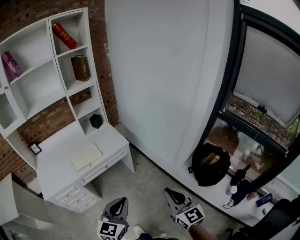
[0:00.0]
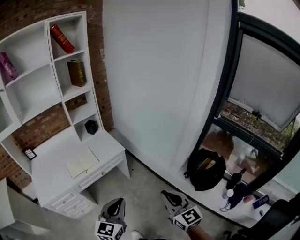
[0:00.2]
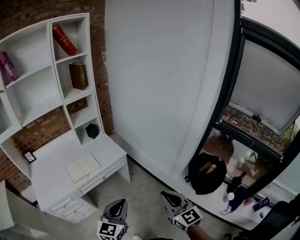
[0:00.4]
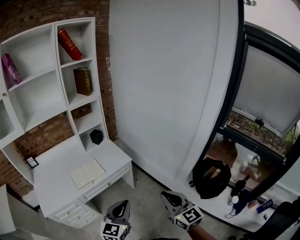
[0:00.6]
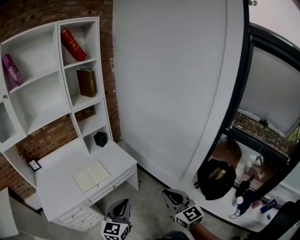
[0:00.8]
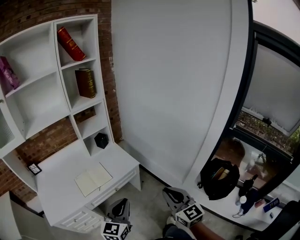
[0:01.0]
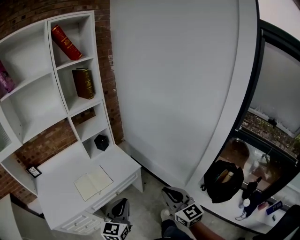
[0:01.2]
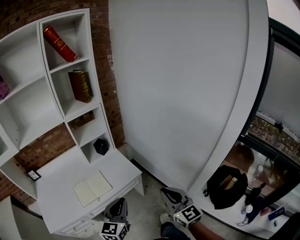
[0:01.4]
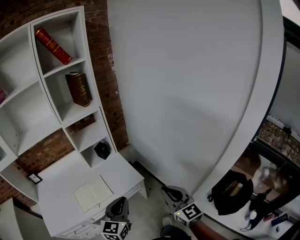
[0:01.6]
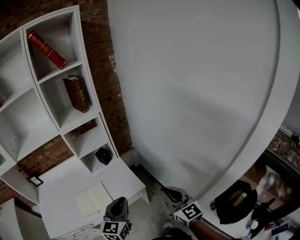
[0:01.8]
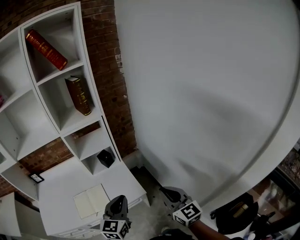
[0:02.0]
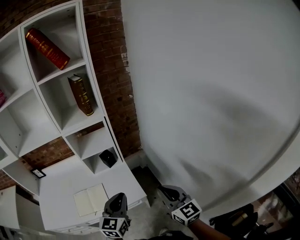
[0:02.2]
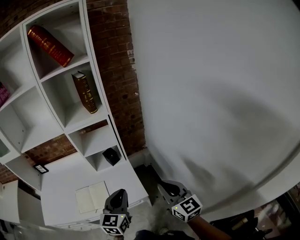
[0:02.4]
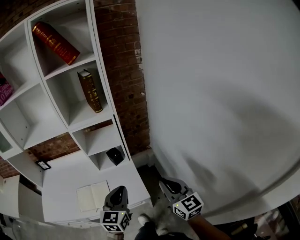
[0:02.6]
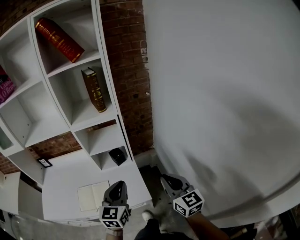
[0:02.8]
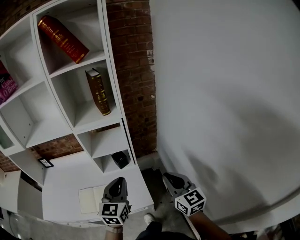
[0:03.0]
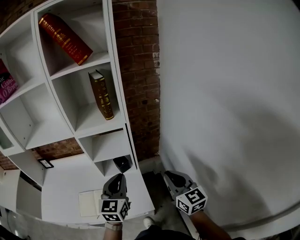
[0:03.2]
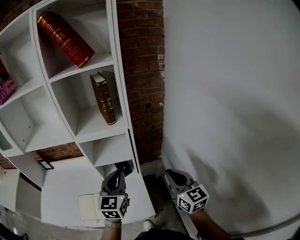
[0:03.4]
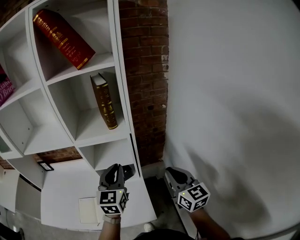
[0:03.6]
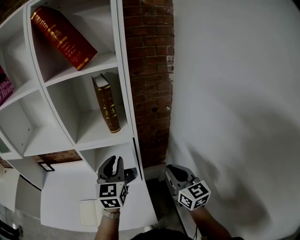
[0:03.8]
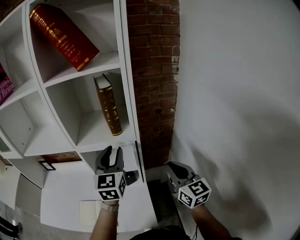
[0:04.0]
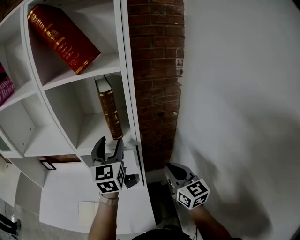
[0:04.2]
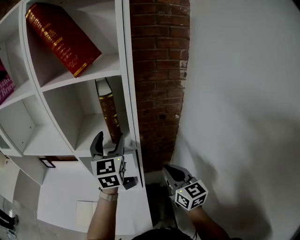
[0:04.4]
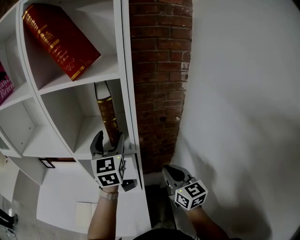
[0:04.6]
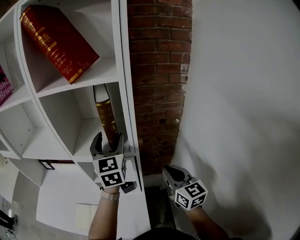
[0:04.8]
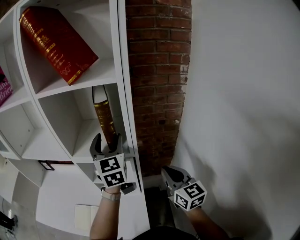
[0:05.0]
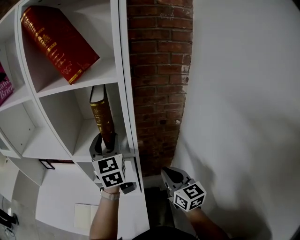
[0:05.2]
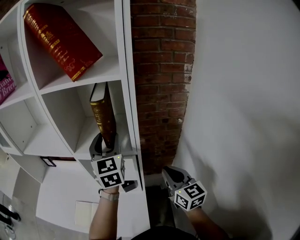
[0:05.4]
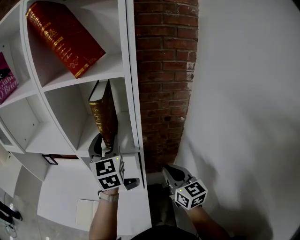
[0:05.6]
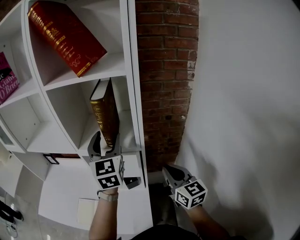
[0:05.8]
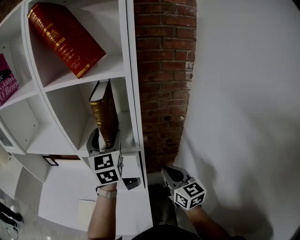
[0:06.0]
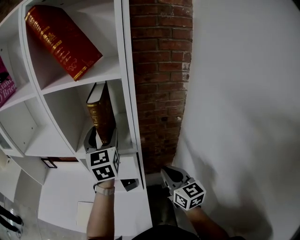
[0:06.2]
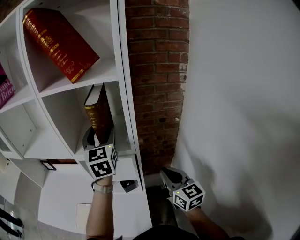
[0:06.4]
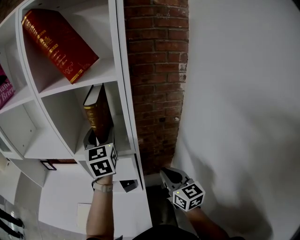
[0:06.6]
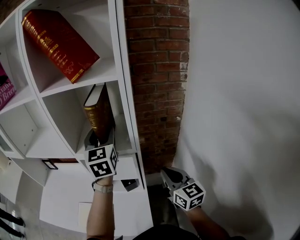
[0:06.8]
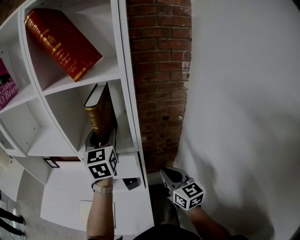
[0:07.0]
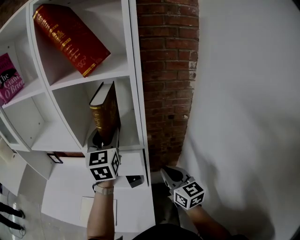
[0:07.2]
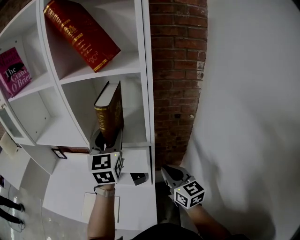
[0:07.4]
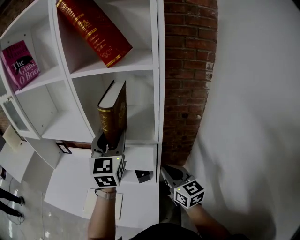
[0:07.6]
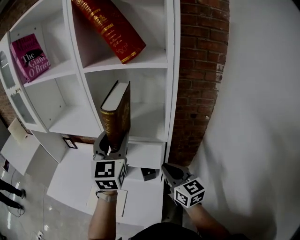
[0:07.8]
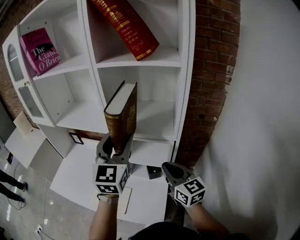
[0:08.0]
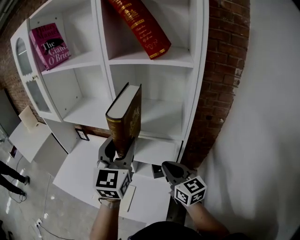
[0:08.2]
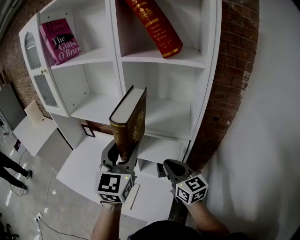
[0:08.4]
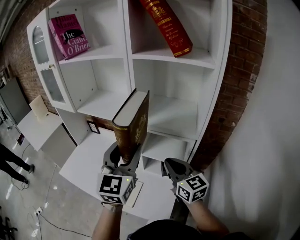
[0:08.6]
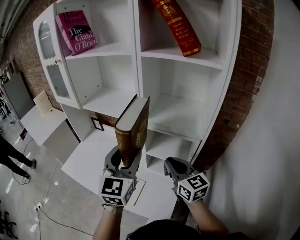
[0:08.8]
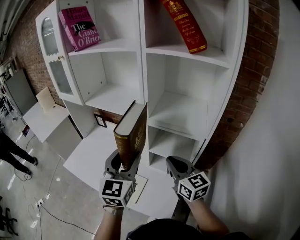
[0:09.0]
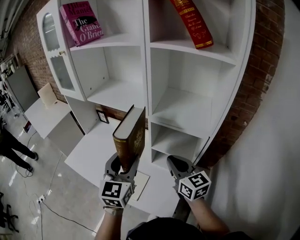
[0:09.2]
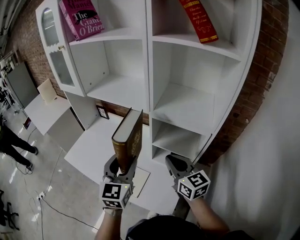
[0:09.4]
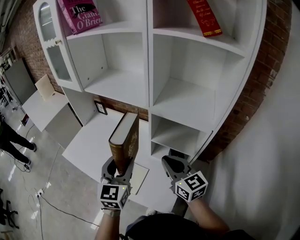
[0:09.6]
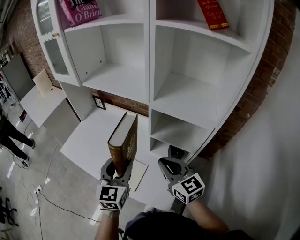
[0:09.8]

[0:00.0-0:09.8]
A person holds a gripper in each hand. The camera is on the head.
0:00.0 to 0:01.4: The two grippers go approximately 30 cm forward and to the left.
0:01.4 to 0:02.8: Both grippers move forward, some 30 cm. The right gripper changes its angle by approximately 20 degrees, while the left gripper rotates some 30 degrees.
0:02.8 to 0:04.2: The left gripper travels forward and upward by approximately 35 cm, turns by roughly 20 degrees, and opens up; the right gripper heads forward, covering about 25 cm.
0:05.6 to 0:07.0: The grippers move only a little.
0:07.0 to 0:08.4: The left gripper is displaced to the left and backward by some 20 cm. The right gripper goes about 20 cm to the left, and swivels approximately 20 degrees.
0:08.4 to 0:09.8: The left gripper is displaced downward and to the left by some 20 cm. The right gripper travels to the left and downward by some 10 cm.

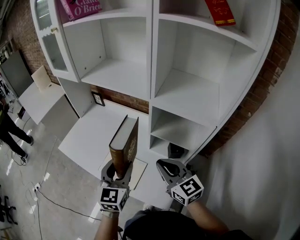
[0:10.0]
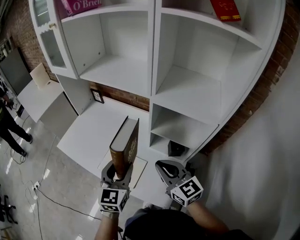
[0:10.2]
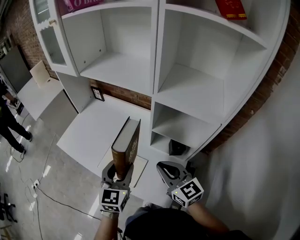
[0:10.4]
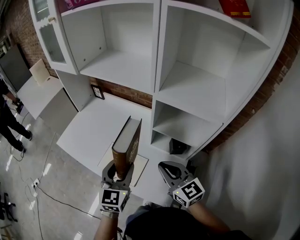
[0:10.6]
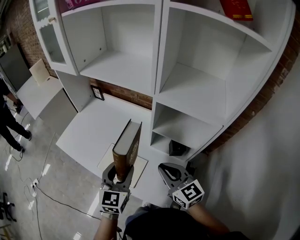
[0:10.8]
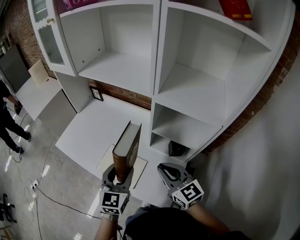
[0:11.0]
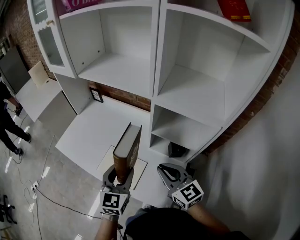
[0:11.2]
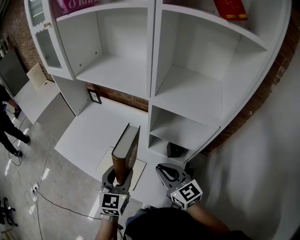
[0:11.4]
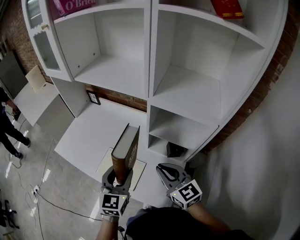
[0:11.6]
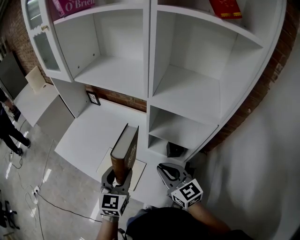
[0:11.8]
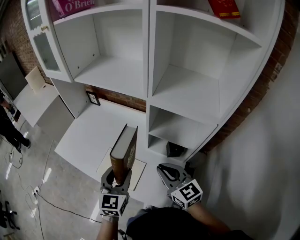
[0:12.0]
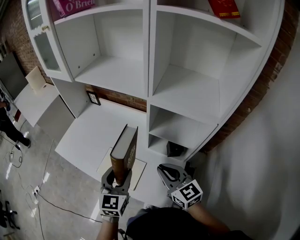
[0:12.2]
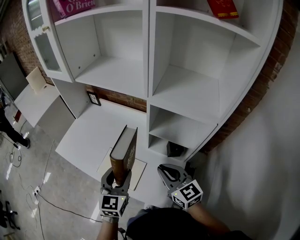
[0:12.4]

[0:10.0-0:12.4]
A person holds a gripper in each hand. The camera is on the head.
0:10.0 to 0:11.2: There are only small adjustments of the grippers.
0:11.2 to 0:12.4: Neither gripper changes place.

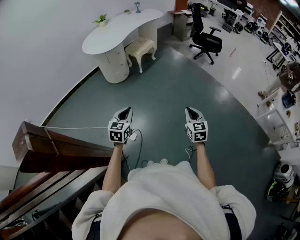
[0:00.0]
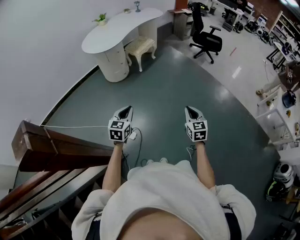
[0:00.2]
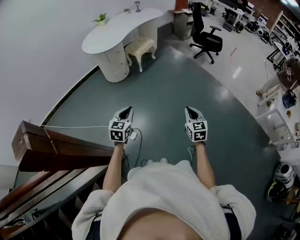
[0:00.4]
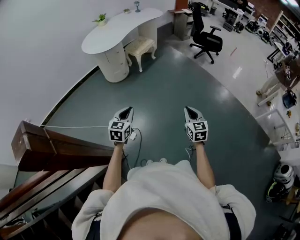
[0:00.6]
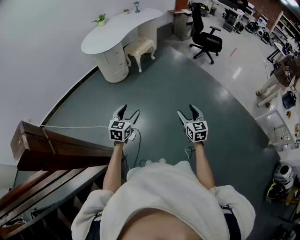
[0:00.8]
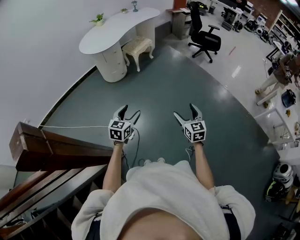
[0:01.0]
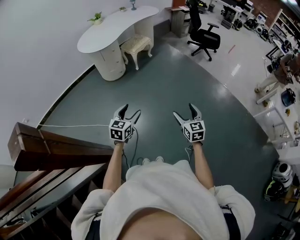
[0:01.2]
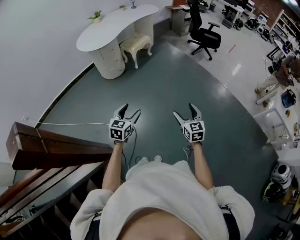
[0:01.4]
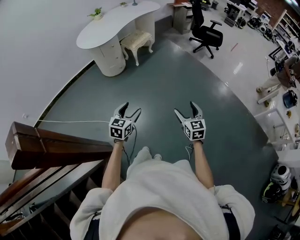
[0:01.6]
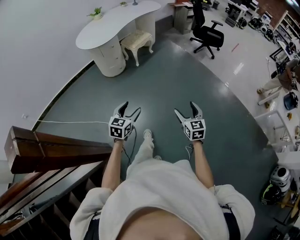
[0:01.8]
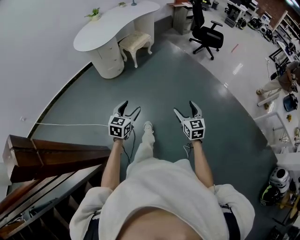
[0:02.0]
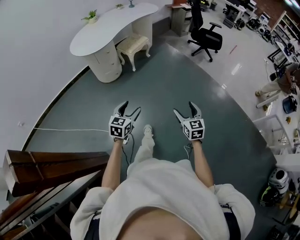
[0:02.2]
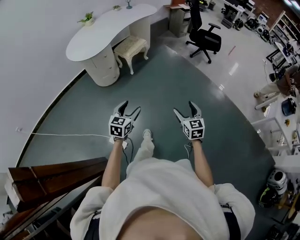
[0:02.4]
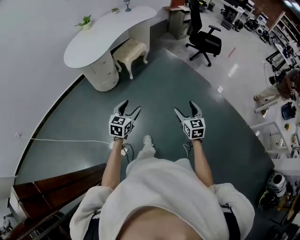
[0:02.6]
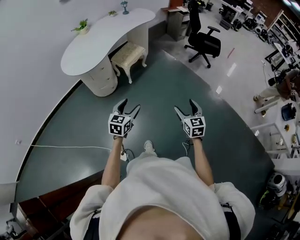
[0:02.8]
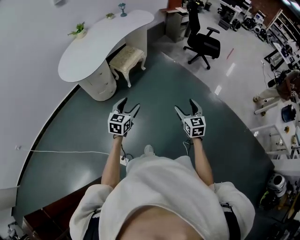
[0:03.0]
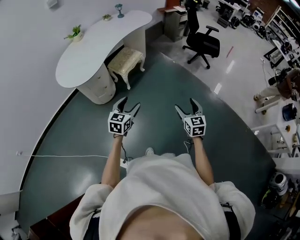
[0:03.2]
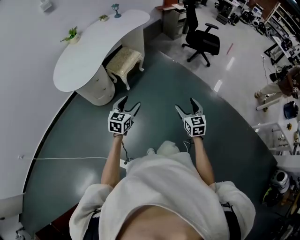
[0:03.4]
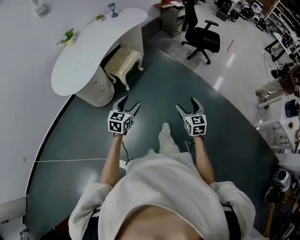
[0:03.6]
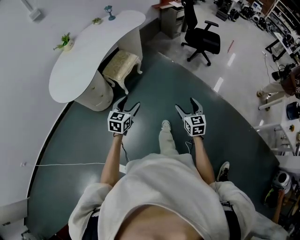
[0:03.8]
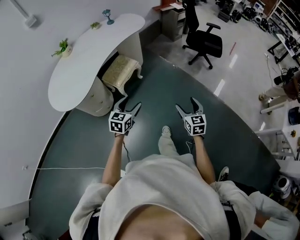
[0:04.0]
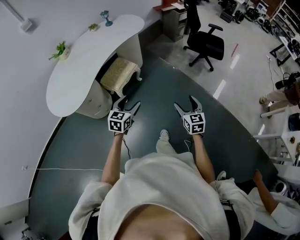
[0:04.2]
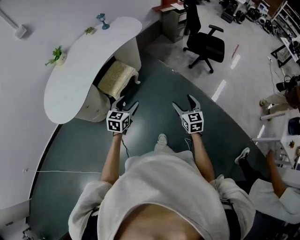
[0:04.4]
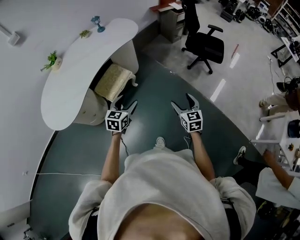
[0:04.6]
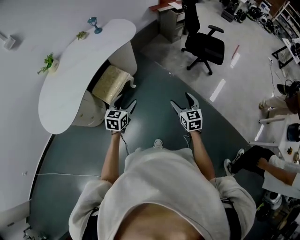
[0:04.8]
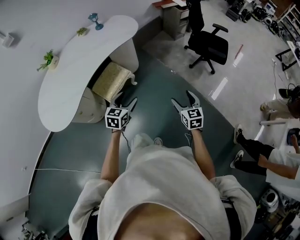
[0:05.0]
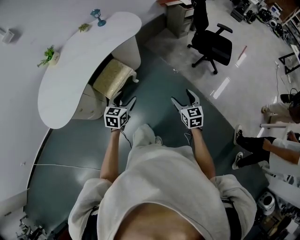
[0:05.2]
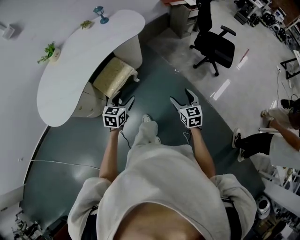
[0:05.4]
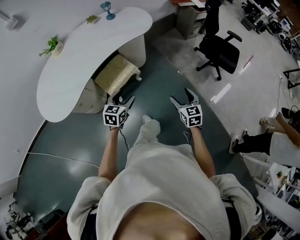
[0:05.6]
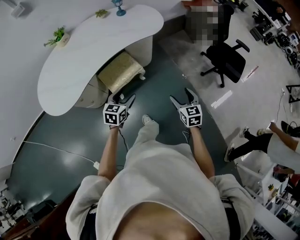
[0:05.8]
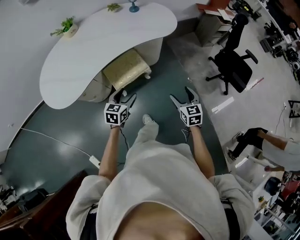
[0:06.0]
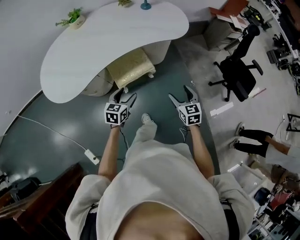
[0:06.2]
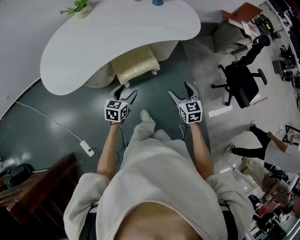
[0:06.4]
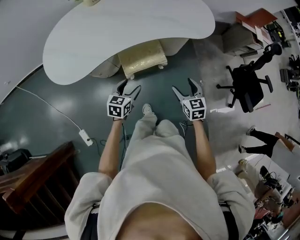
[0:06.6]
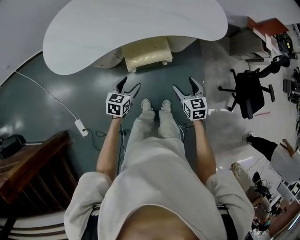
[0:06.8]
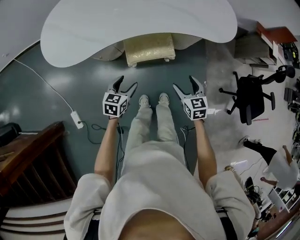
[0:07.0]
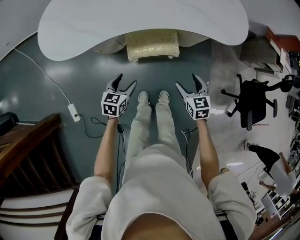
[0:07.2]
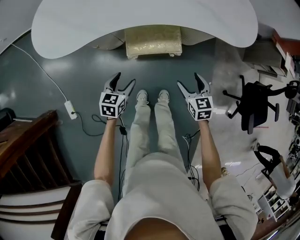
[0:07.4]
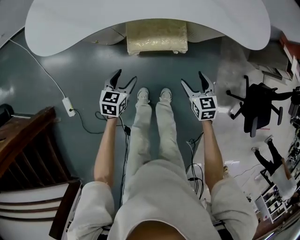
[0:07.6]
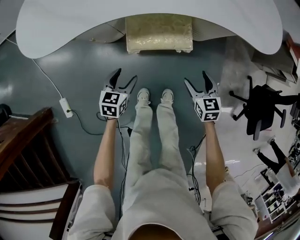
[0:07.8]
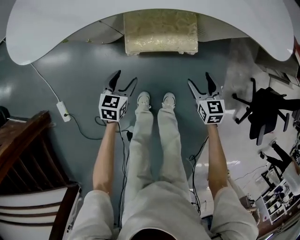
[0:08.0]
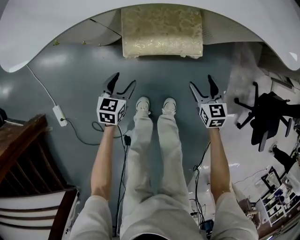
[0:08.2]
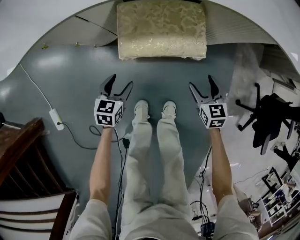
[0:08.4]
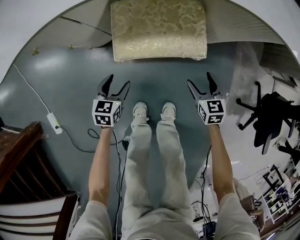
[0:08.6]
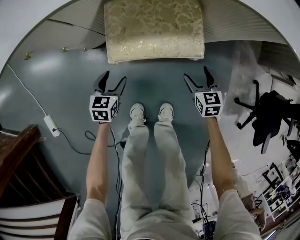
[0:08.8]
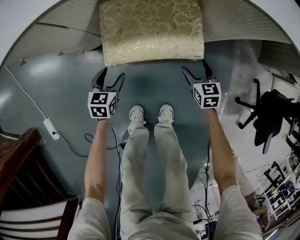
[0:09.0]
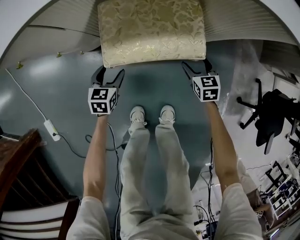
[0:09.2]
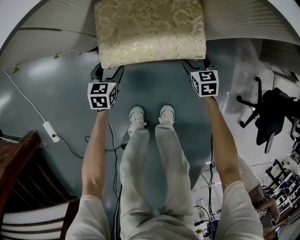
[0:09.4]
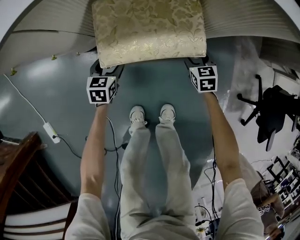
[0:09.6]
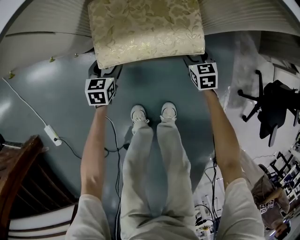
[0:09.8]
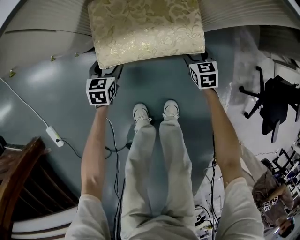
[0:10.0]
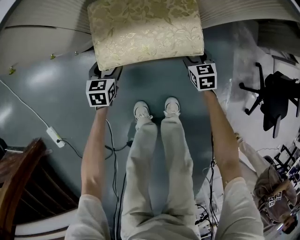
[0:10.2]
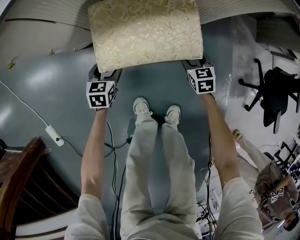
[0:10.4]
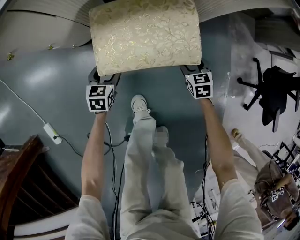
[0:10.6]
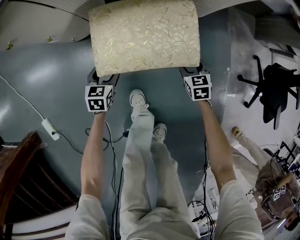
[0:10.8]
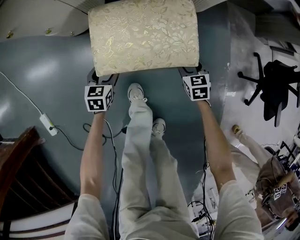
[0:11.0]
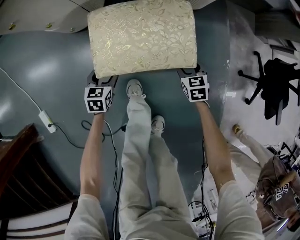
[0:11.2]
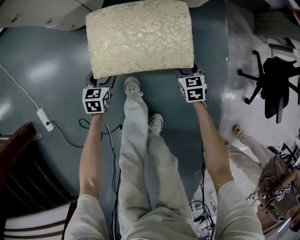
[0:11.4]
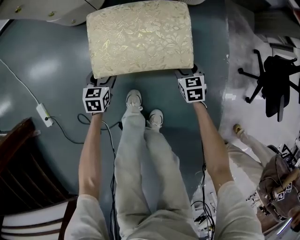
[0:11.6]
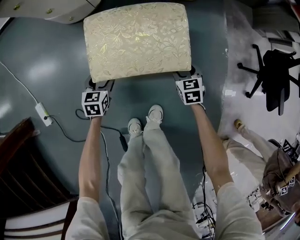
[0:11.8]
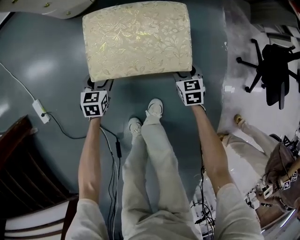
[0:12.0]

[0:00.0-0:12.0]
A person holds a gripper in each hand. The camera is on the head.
0:00.0 to 0:01.6: The left gripper travels to the right by roughly 10 cm, and opens its fingers, while the right gripper shifts about 5 cm to the right, and opens its fingers.
0:01.6 to 0:03.0: Both grippers travel together forward, some 40 cm.
0:03.0 to 0:04.4: Both grippers move forward, about 35 cm.
0:04.4 to 0:06.0: Both grippers move forward, some 25 cm. The left gripper swivels roughly 20 degrees. The right gripper rotates about 20 degrees.
0:06.0 to 0:07.6: The two grippers go about 25 cm downward. The left gripper changes its angle by approximately 30 degrees, while the right gripper swivels some 30 degrees.
0:07.6 to 0:09.0: Both grippers travel together downward, some 30 cm.
0:09.0 to 0:10.4: The right gripper travels downward by some 5 cm.
0:10.4 to 0:12.0: The right gripper moves forward, approximately 10 cm, while the left gripper moves some 10 cm backward and comes back.
